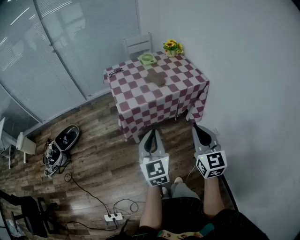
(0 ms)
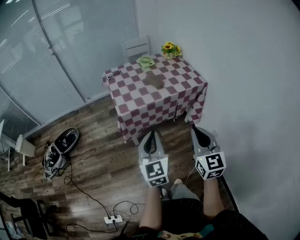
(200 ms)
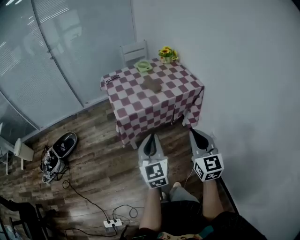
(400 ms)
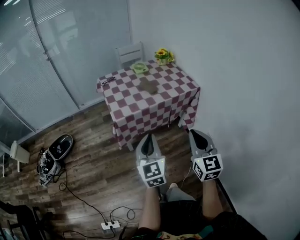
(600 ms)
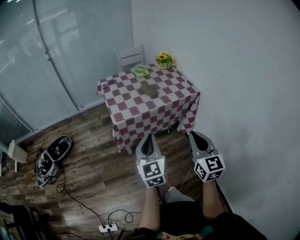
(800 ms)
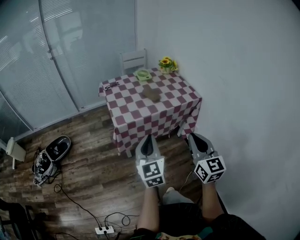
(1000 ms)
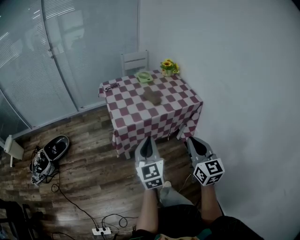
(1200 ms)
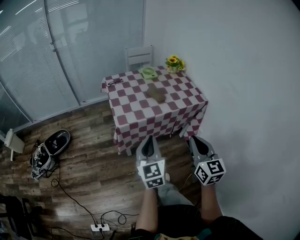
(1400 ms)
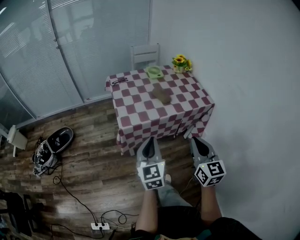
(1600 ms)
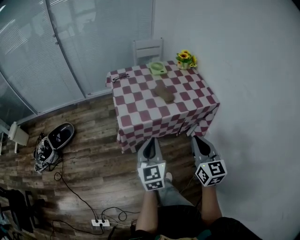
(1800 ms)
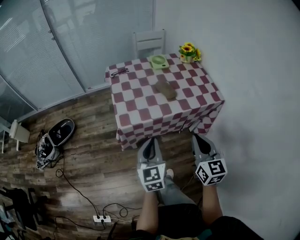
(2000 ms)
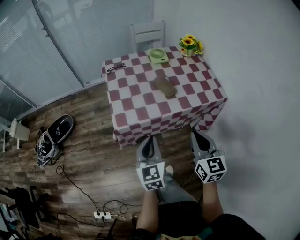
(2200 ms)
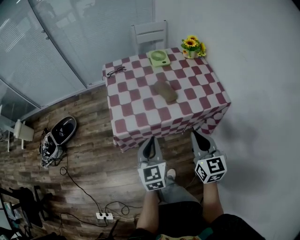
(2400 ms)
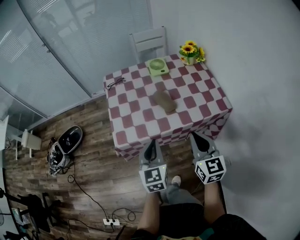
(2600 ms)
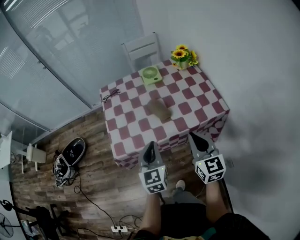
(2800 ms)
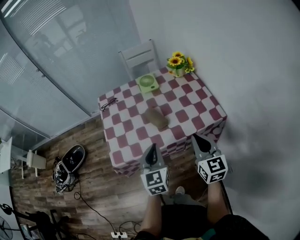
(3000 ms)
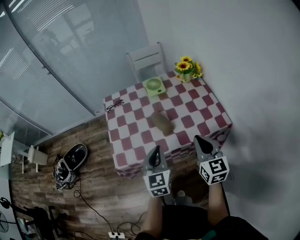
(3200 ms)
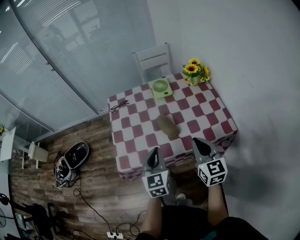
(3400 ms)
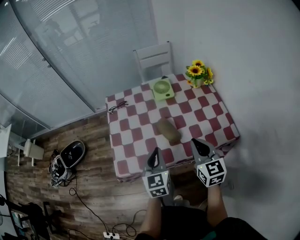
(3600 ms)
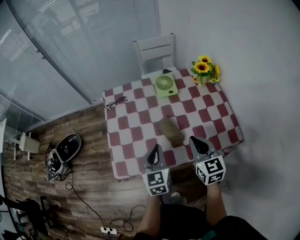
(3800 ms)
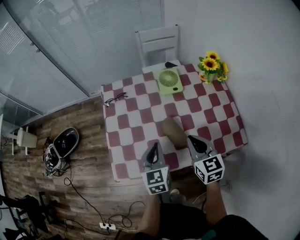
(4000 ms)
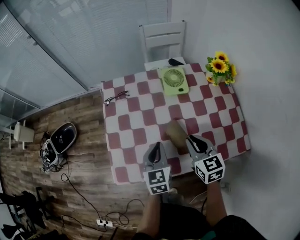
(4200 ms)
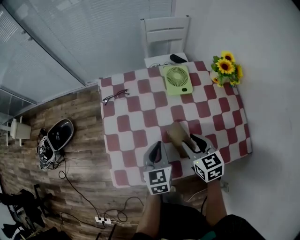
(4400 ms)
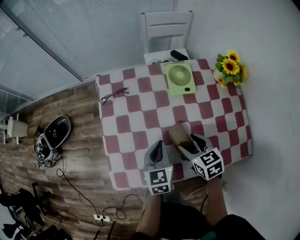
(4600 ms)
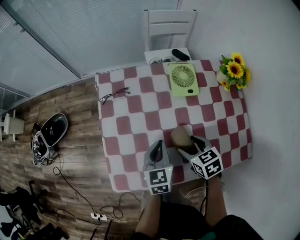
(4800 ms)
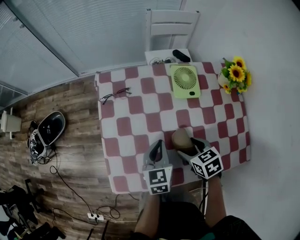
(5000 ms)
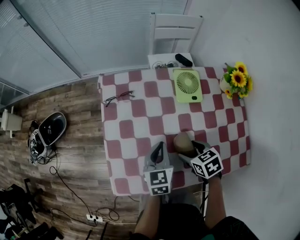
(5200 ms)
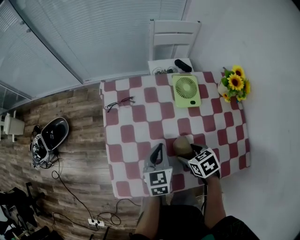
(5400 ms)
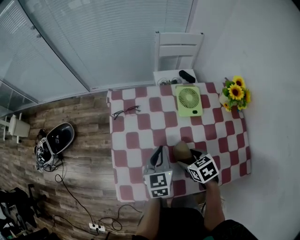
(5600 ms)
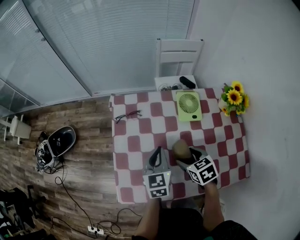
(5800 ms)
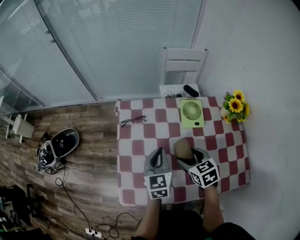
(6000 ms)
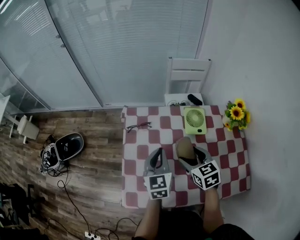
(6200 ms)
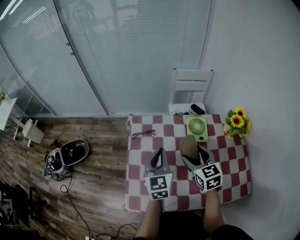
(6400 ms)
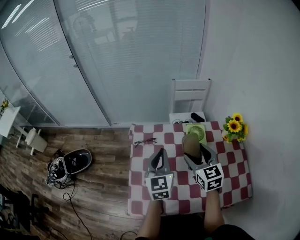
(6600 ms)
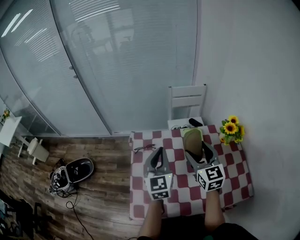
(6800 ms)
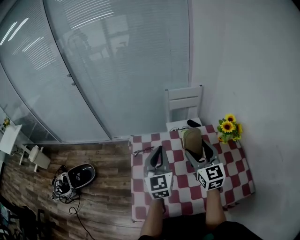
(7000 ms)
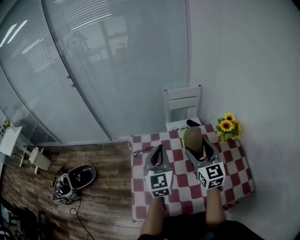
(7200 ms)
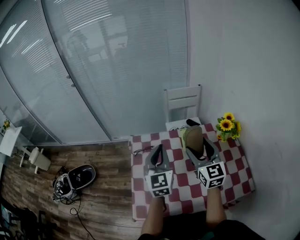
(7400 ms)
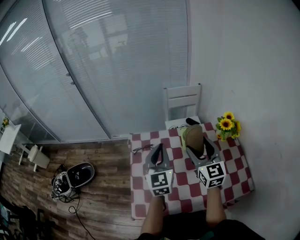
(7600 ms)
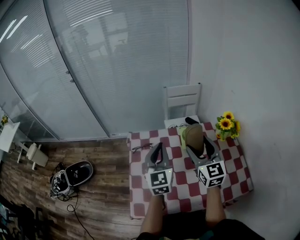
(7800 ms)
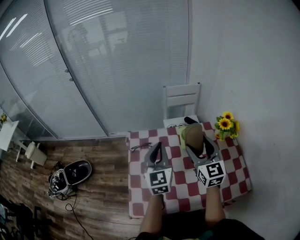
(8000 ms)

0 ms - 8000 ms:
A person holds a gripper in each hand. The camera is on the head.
0 ms - 1600 ms: Both grippers travel together forward, approximately 10 cm.
1600 ms - 3200 ms: Both grippers move forward and to the right, some 30 cm.
3200 ms - 4800 ms: The right gripper moves forward, downward and to the left, about 30 cm, points its fingers some 40 degrees further downward, and opens, while the left gripper shifts some 25 cm forward and downward, and changes its angle by roughly 20 degrees.
4800 ms - 6400 ms: Both grippers move upward and forward, about 20 cm. The right gripper turns by about 30 degrees, while the left gripper rotates roughly 20 degrees.
6400 ms - 8000 ms: The grippers both shift upward by roughly 10 cm. The right gripper rotates approximately 30 degrees.

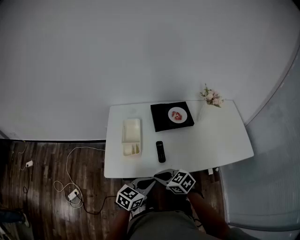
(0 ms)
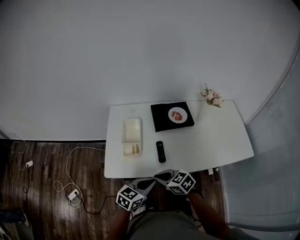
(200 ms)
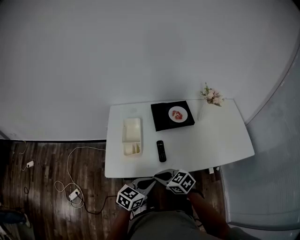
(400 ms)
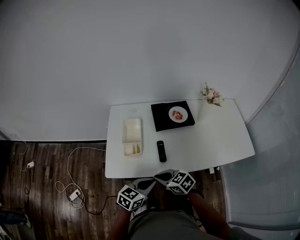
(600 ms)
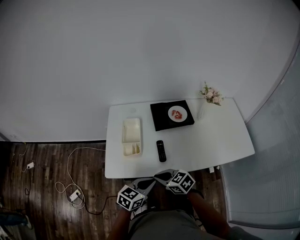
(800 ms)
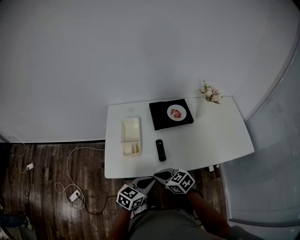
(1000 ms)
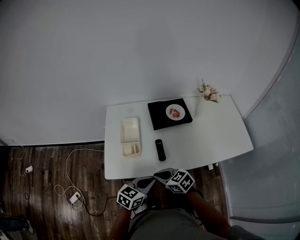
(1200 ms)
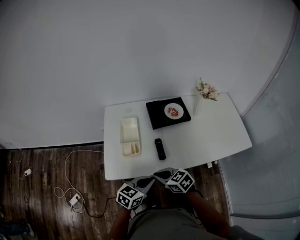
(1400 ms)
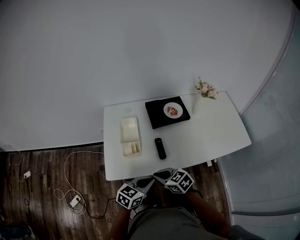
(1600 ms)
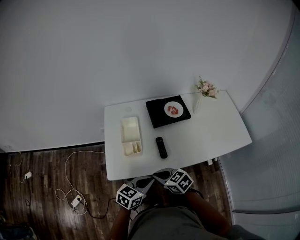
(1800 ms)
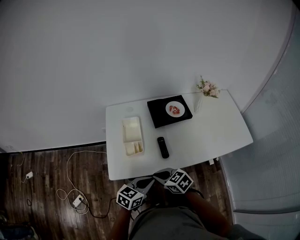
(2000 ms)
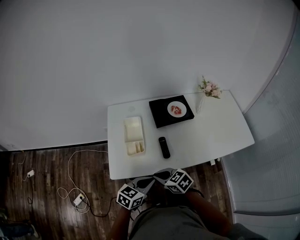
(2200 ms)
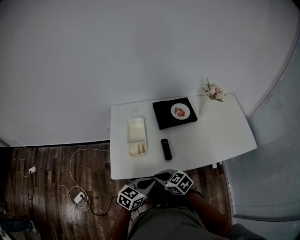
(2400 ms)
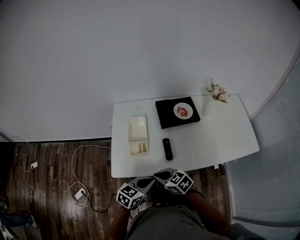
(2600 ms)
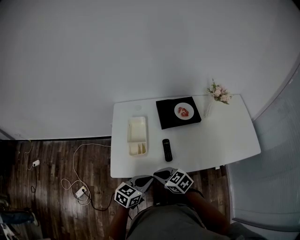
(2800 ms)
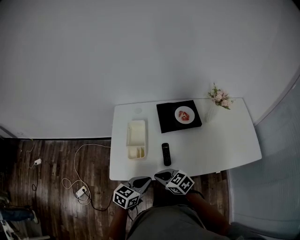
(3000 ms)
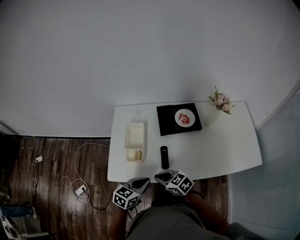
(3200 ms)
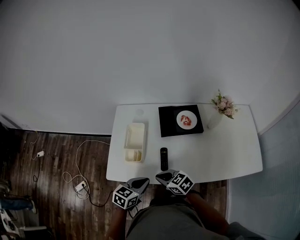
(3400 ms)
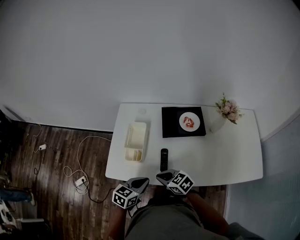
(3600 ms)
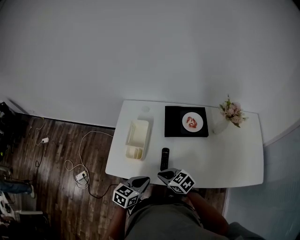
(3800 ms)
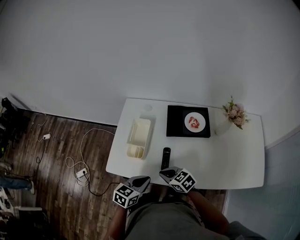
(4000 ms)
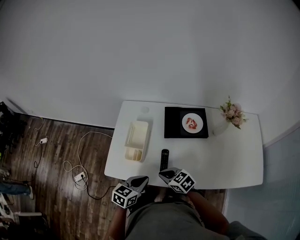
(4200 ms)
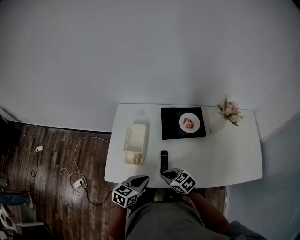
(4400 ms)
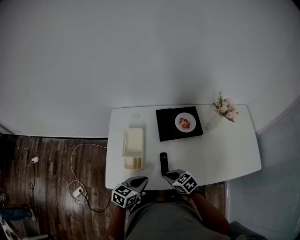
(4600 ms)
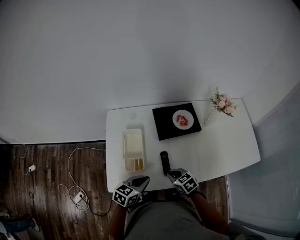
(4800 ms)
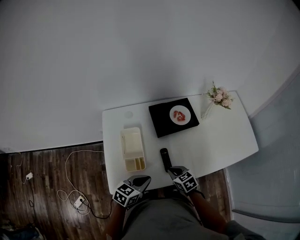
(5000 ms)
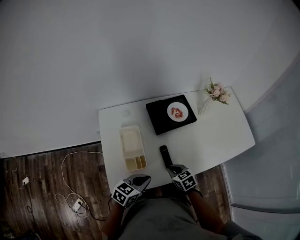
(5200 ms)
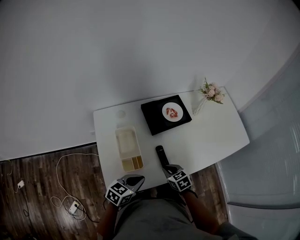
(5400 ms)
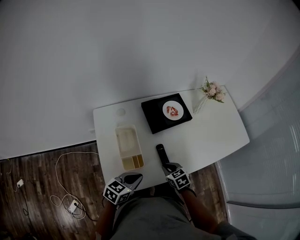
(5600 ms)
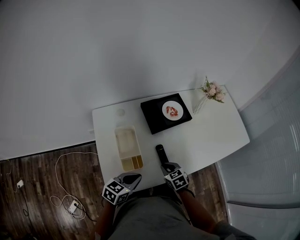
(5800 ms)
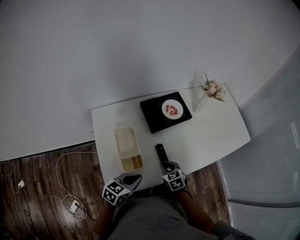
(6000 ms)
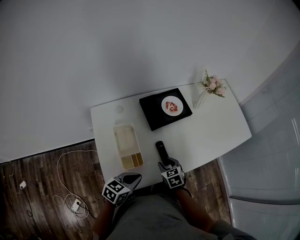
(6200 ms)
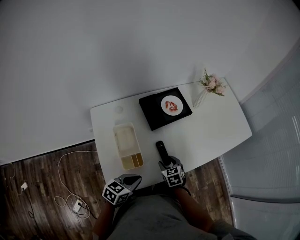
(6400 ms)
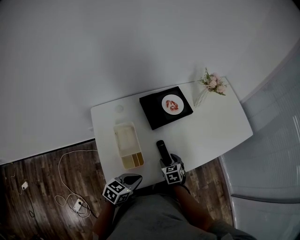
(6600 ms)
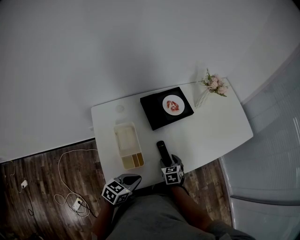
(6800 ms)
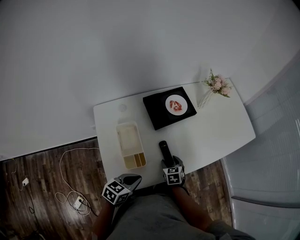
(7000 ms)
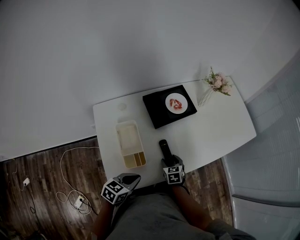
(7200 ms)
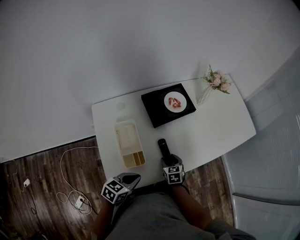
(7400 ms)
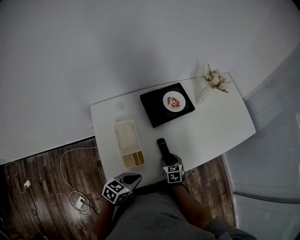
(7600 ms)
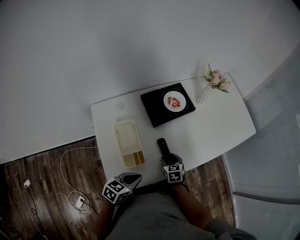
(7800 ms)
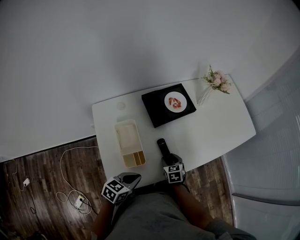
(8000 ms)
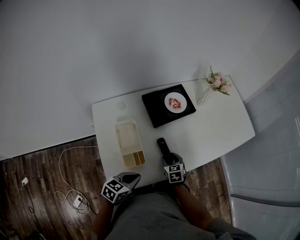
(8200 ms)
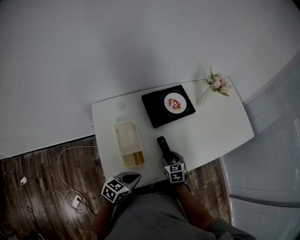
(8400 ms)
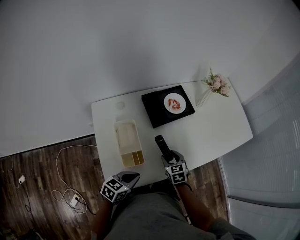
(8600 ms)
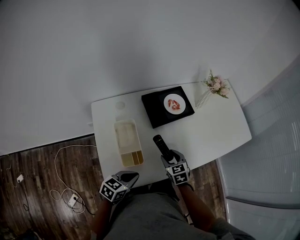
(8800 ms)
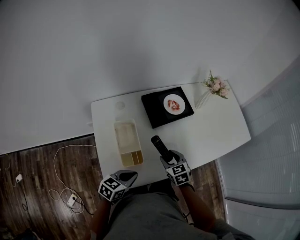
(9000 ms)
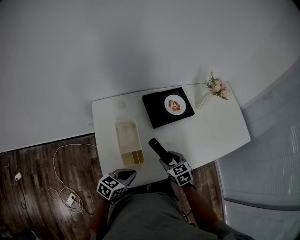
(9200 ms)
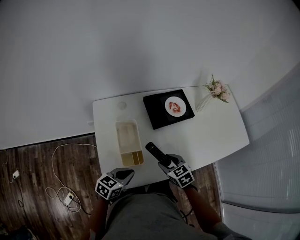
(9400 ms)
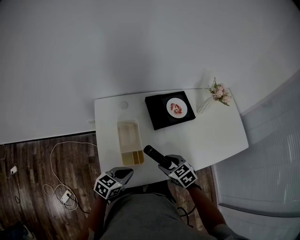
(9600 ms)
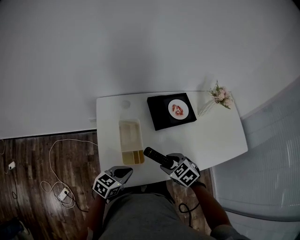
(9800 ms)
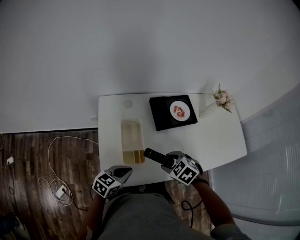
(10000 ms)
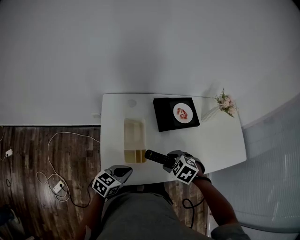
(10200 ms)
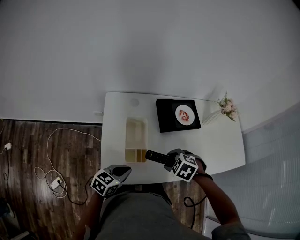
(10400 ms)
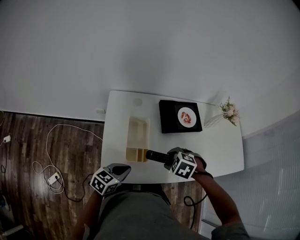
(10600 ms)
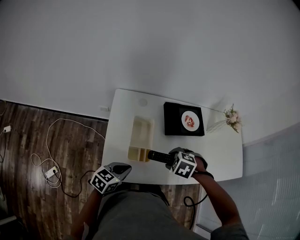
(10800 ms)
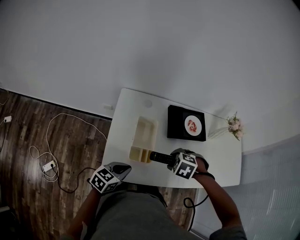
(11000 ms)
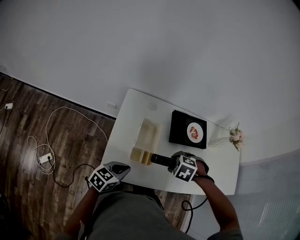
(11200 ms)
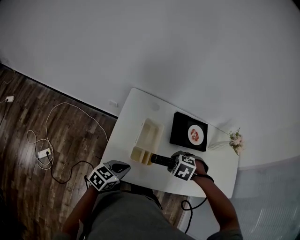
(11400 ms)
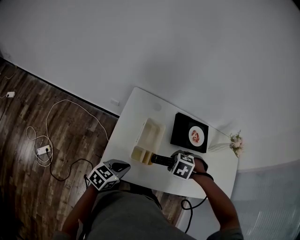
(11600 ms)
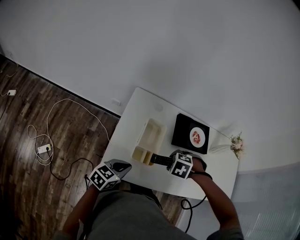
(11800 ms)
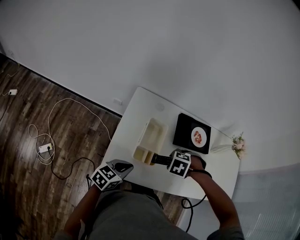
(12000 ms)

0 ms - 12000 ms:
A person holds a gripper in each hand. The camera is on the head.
0 ms - 3000 ms: The grippers stay close to where they were, moving slightly.
3000 ms - 4400 ms: The right gripper is displaced to the right and forward by roughly 10 cm. The left gripper shifts about 5 cm forward.
4400 ms - 6000 ms: The left gripper changes place by some 10 cm, and changes its angle by approximately 30 degrees, while the right gripper is displaced downward by roughly 5 cm, and turns by some 50 degrees.
6000 ms - 7600 ms: The right gripper is displaced downward by about 5 cm, and opens its fingers.
7600 ms - 9000 ms: The right gripper travels upward by roughly 10 cm.
9000 ms - 10400 ms: The right gripper is displaced upward by some 5 cm, and tilts its fingers roughly 30 degrees downward.
10400 ms - 12000 ms: The right gripper changes place by some 5 cm, and rotates roughly 30 degrees.

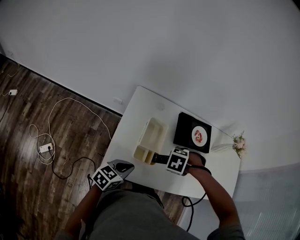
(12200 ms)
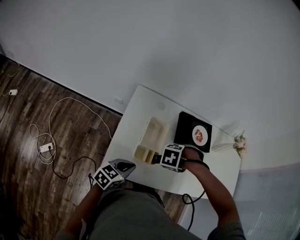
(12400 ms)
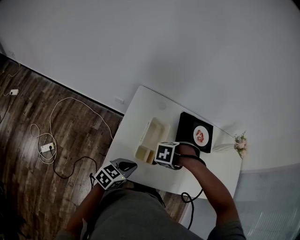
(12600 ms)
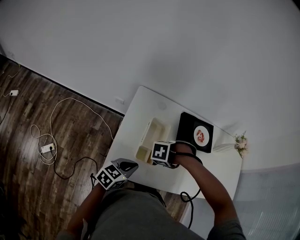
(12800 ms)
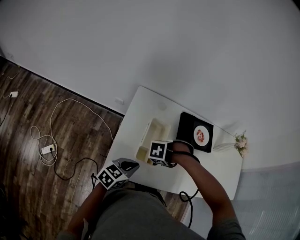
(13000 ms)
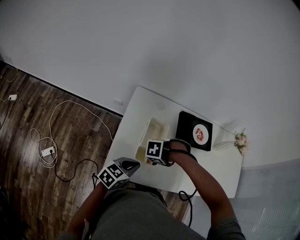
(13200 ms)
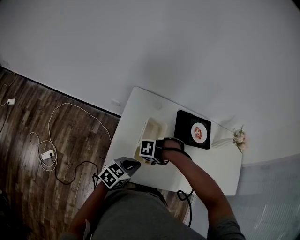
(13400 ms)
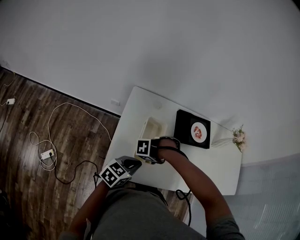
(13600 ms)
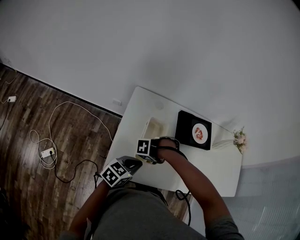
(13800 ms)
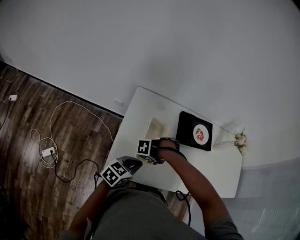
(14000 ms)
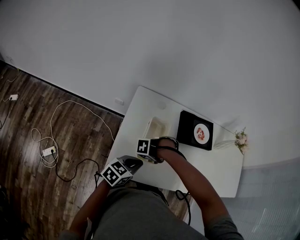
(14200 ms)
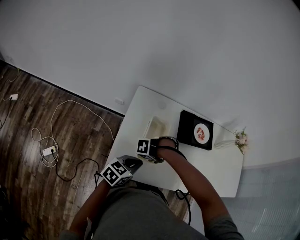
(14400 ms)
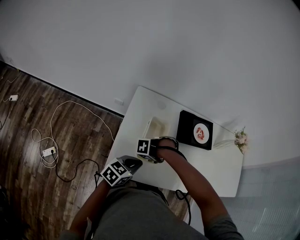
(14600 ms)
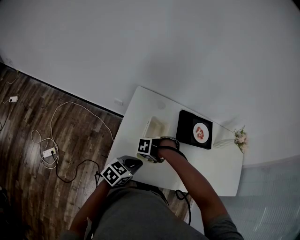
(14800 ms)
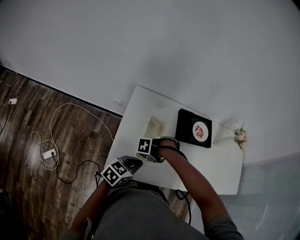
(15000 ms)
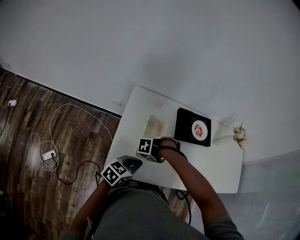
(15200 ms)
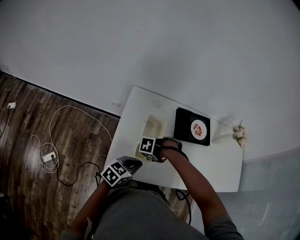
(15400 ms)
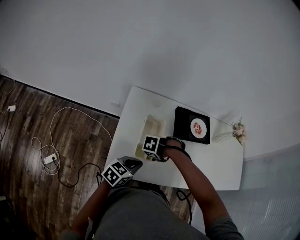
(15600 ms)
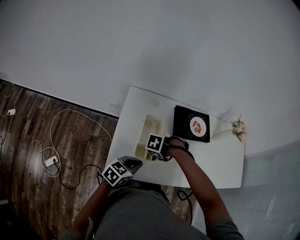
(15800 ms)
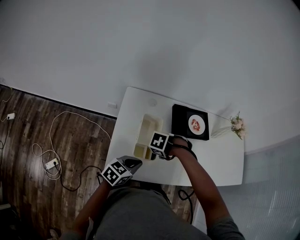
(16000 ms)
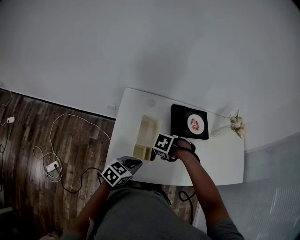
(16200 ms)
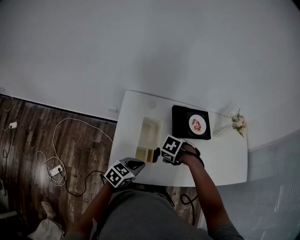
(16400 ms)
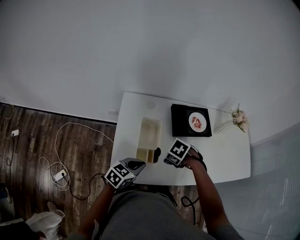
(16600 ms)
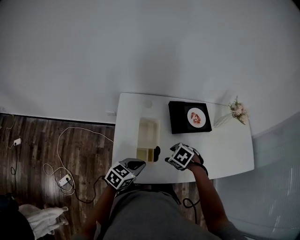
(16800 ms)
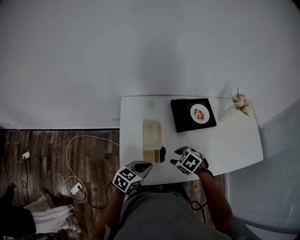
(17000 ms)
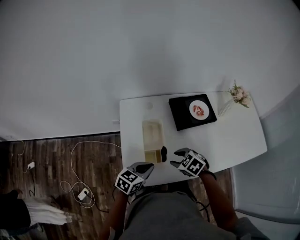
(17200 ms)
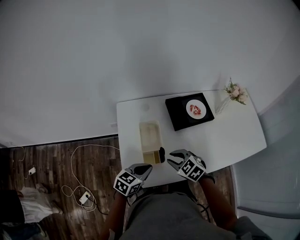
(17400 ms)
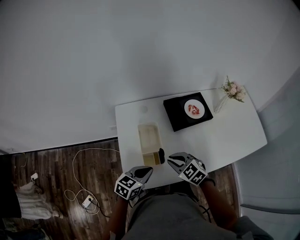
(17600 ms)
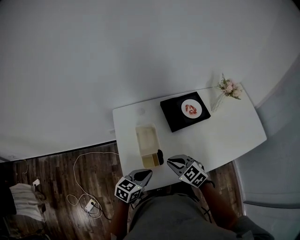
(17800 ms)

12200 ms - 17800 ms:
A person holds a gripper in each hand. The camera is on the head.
12200 ms - 13600 ms: The right gripper moves about 5 cm, and swivels about 30 degrees.
13600 ms - 15000 ms: The grippers stay close to where they were, moving slightly.
15000 ms - 16400 ms: The right gripper turns by some 40 degrees.
16400 ms - 17800 ms: The right gripper changes place by about 5 cm, angles its fingers upward, by approximately 40 degrees, and closes its fingers.
